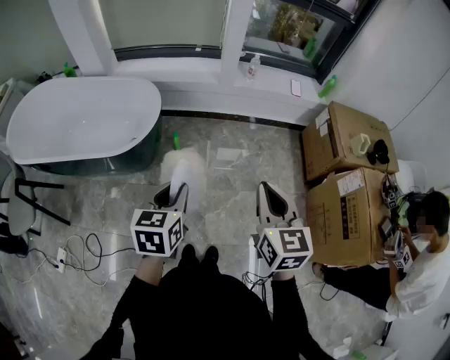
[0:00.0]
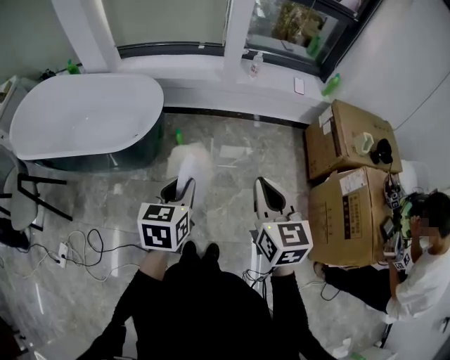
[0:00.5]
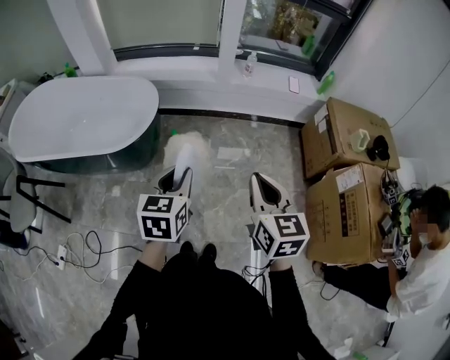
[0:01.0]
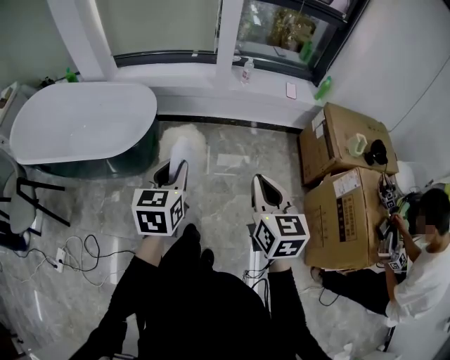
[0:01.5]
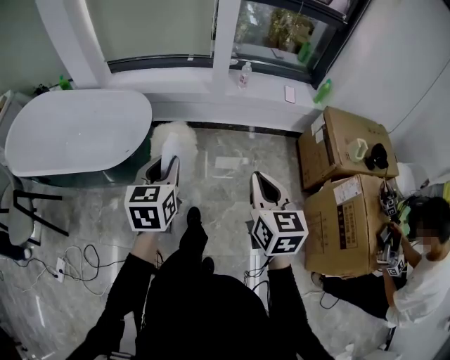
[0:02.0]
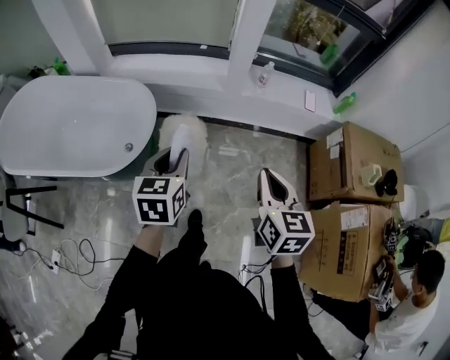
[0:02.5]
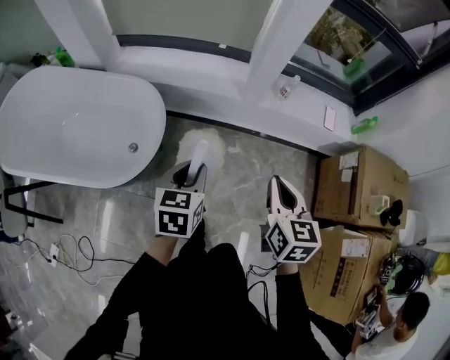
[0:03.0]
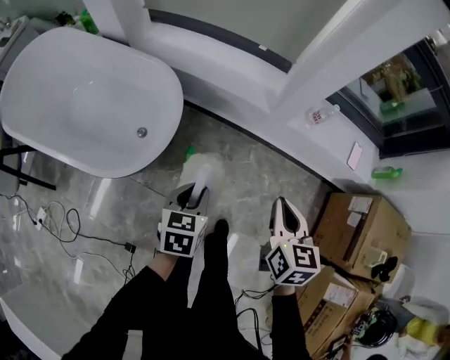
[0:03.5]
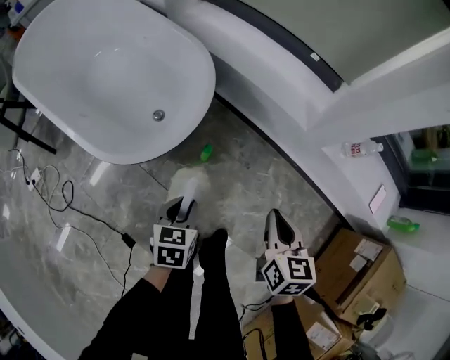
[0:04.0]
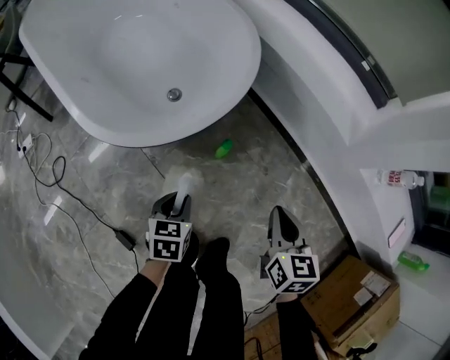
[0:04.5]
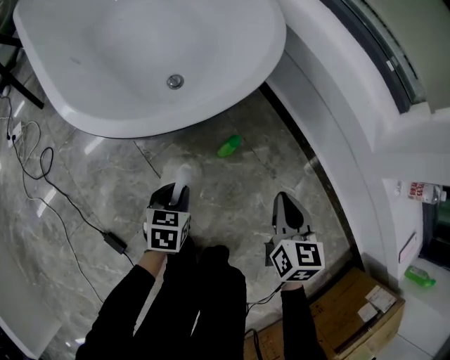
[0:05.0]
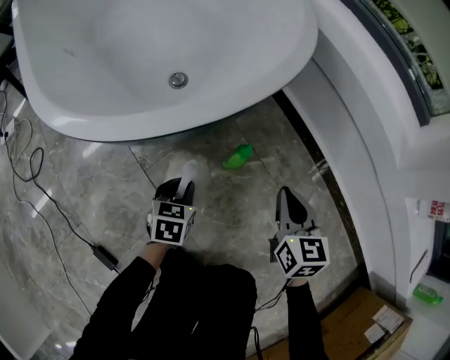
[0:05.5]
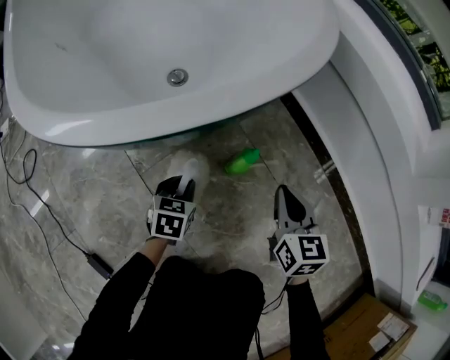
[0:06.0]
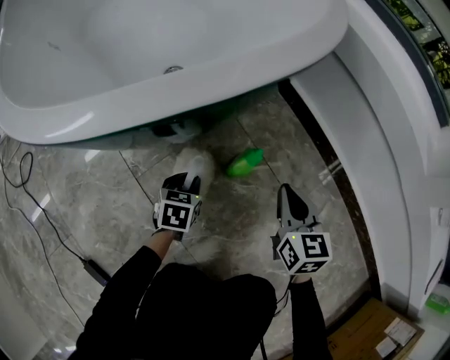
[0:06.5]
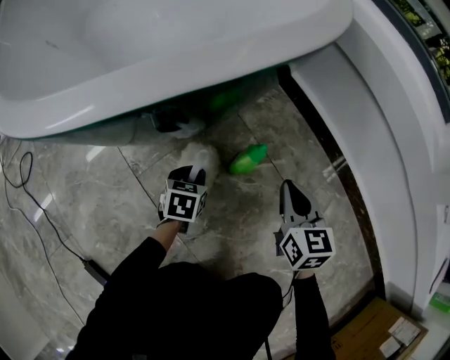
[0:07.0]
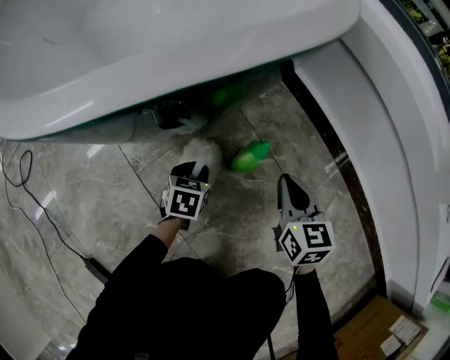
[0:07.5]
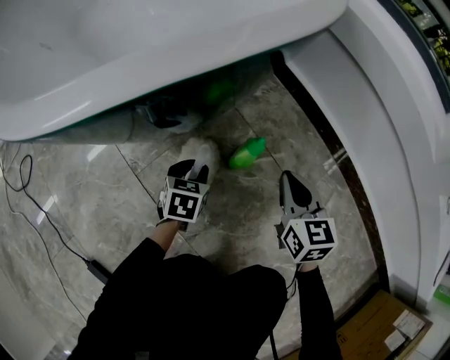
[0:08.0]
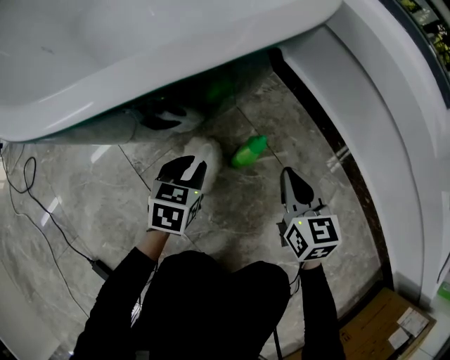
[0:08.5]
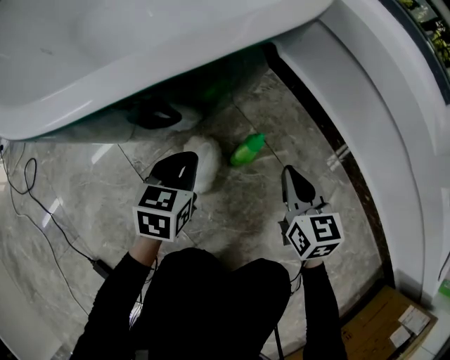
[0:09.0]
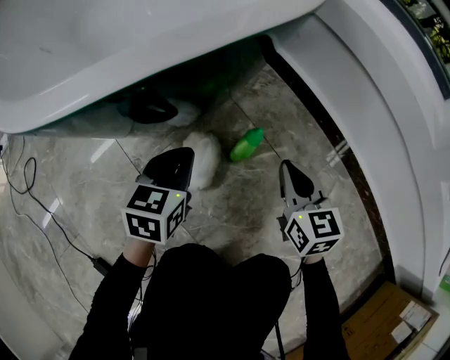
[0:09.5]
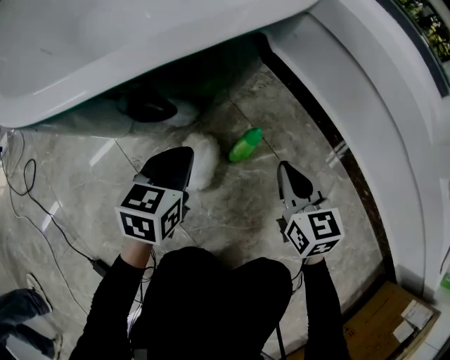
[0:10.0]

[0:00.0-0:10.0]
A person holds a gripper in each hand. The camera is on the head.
0:00.0 to 0:02.0: The grippers both shift forward by about 10 cm.
0:02.0 to 0:04.0: The left gripper travels downward by about 35 cm, and swivels some 40 degrees, while the right gripper ends up roughly 50 cm from where it was, and turns by roughly 30 degrees.
0:04.0 to 0:06.0: Both grippers move downward, approximately 40 cm. The right gripper turns by roughly 20 degrees.
0:06.0 to 0:08.0: Both grippers travel together downward, roughly 5 cm.
0:08.0 to 0:10.0: The left gripper shifts roughly 15 cm upward, and closes its fingers.

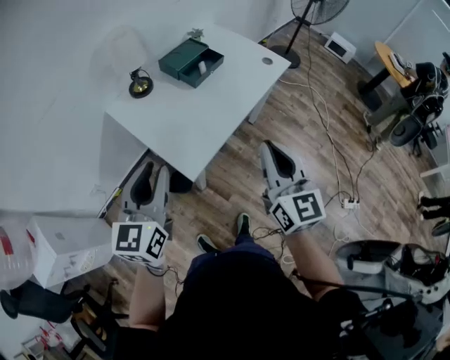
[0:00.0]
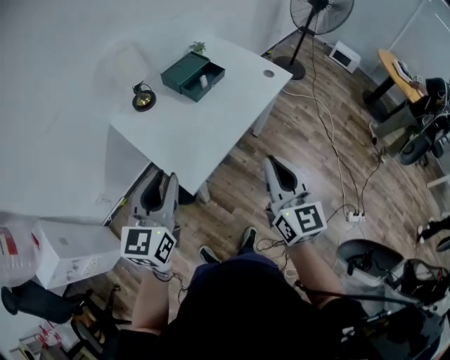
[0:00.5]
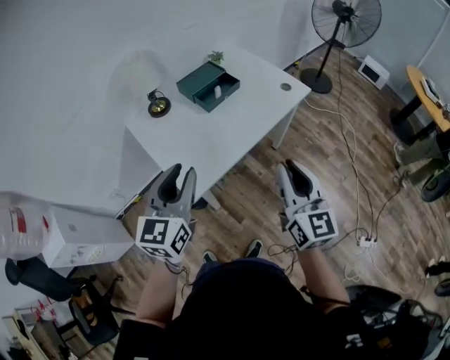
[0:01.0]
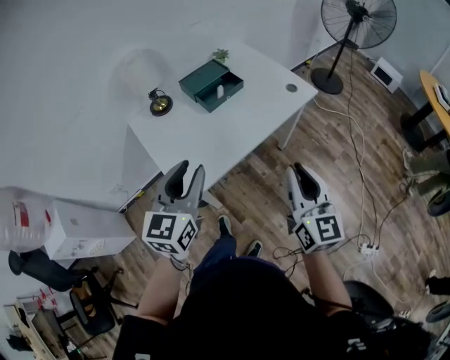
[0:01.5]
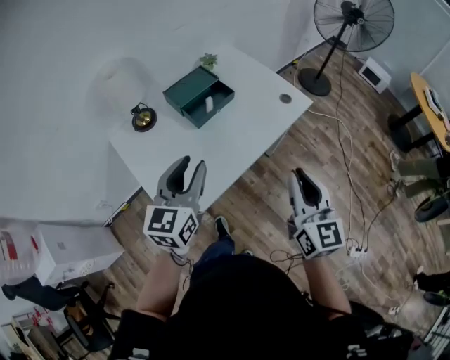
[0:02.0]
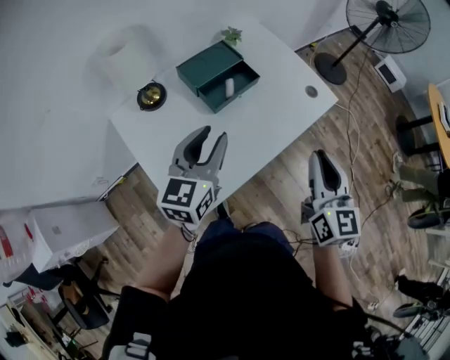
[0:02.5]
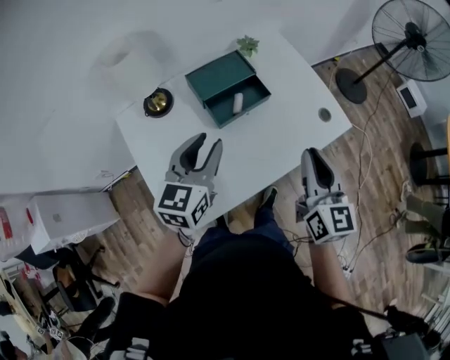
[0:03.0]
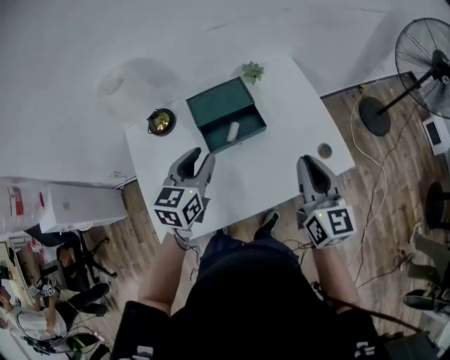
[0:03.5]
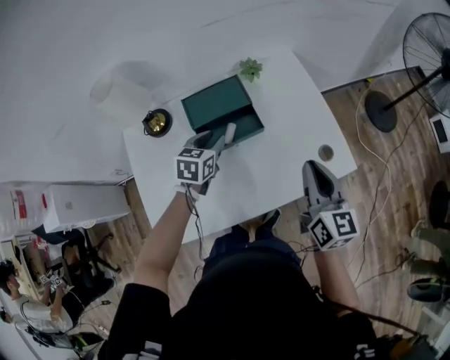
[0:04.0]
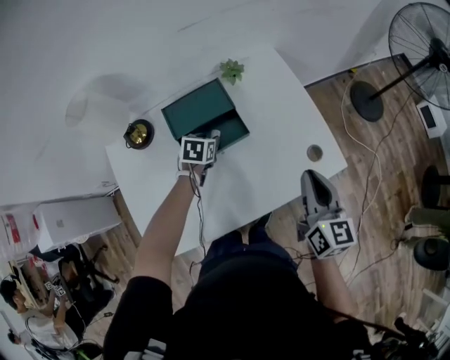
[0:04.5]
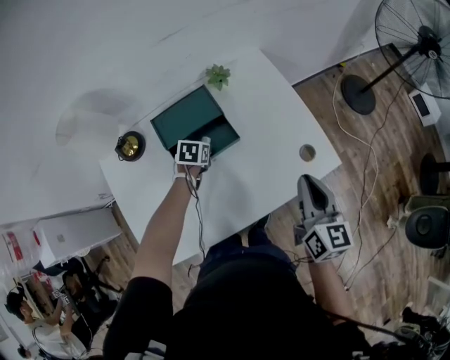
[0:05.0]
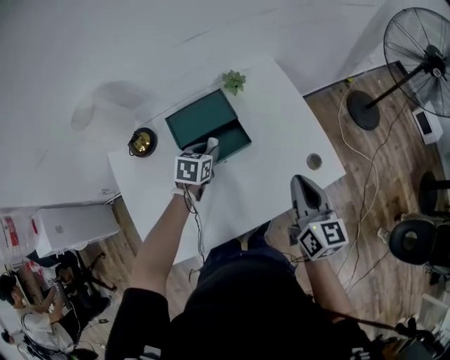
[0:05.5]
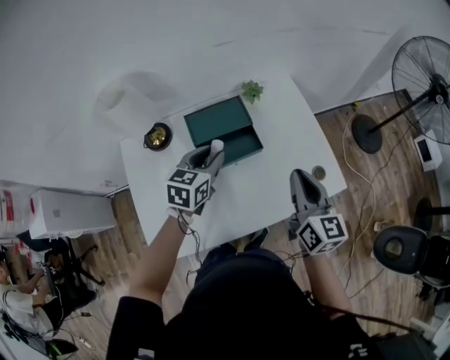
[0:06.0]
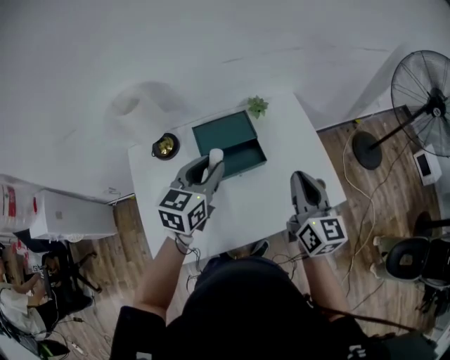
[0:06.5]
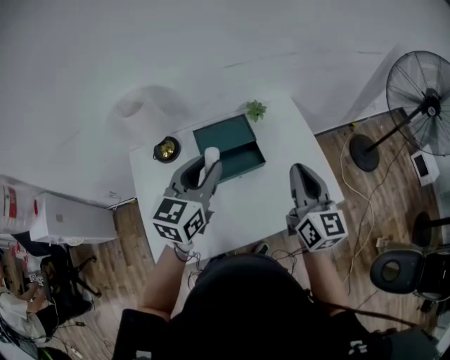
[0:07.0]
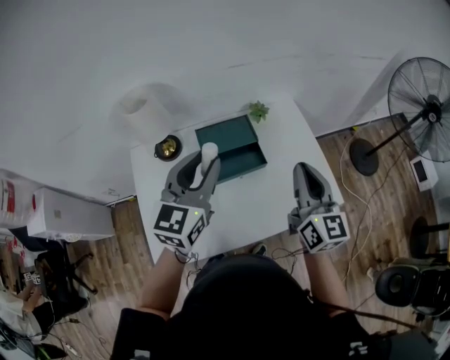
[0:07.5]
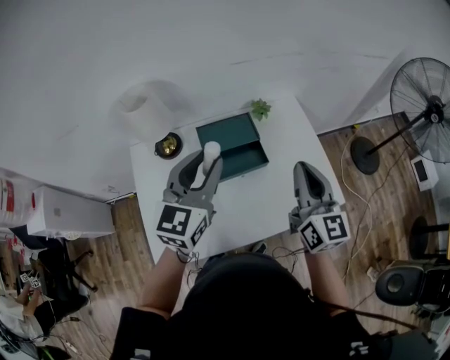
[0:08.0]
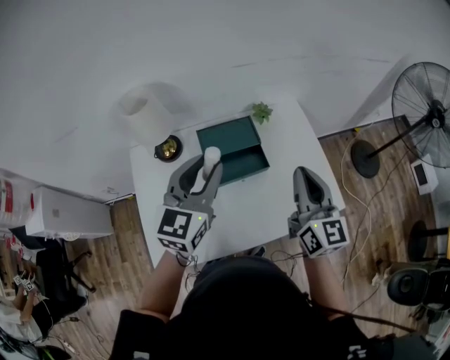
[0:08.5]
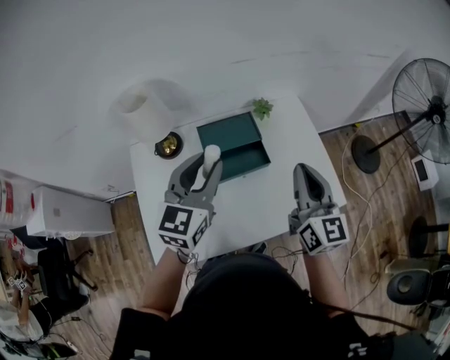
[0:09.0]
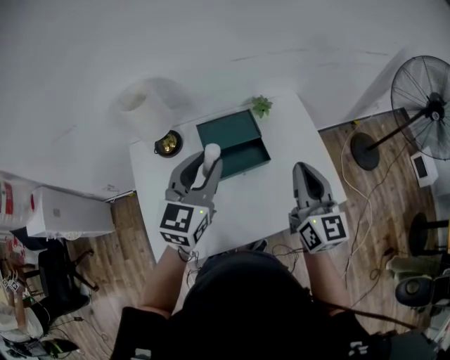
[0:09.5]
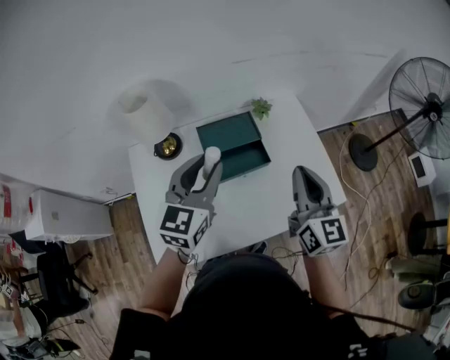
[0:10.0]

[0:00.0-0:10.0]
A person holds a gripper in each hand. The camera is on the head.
0:00.0 to 0:02.0: Both grippers move forward and to the right, some 25 cm.
0:02.0 to 0:04.0: The left gripper heads forward and downward, covering approximately 40 cm, and tilts its fingers roughly 30 degrees downward; the right gripper moves forward, about 40 cm, and rotates about 30 degrees.
0:04.0 to 0:06.0: The left gripper heads upward, covering approximately 10 cm. Meanwhile the right gripper travels to the left by about 5 cm.
0:06.0 to 0:08.0: The right gripper goes approximately 10 cm upward; the left gripper shifts about 20 cm upward, and rotates approximately 30 degrees.
0:08.0 to 0:10.0: The grippers stay close to where they were, moving slightly.

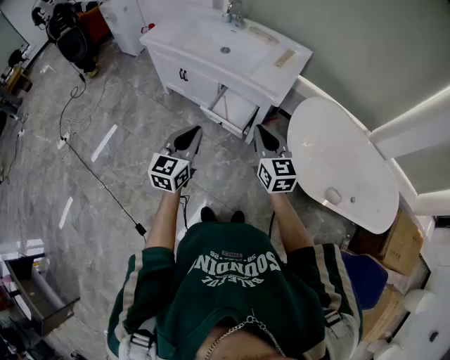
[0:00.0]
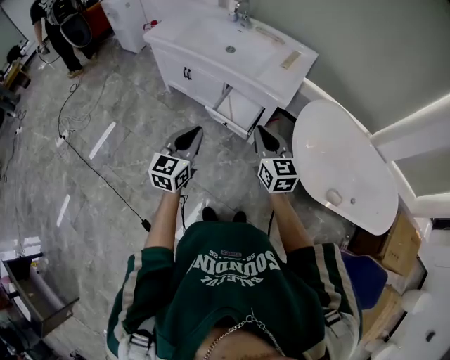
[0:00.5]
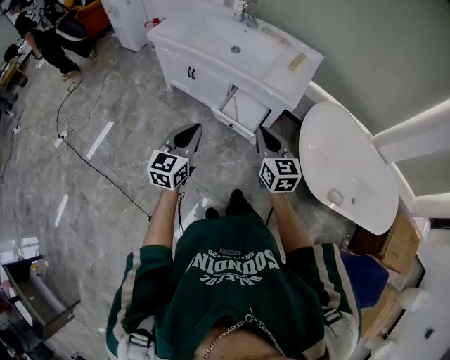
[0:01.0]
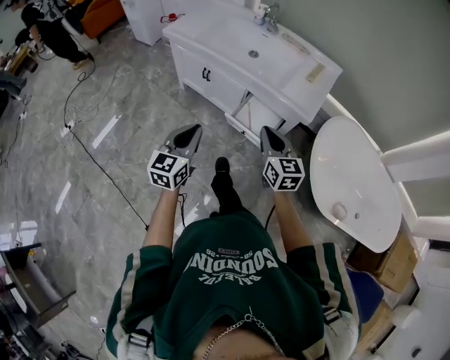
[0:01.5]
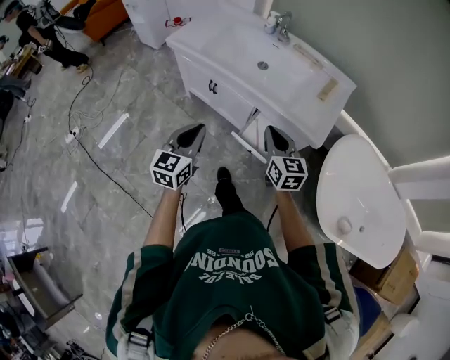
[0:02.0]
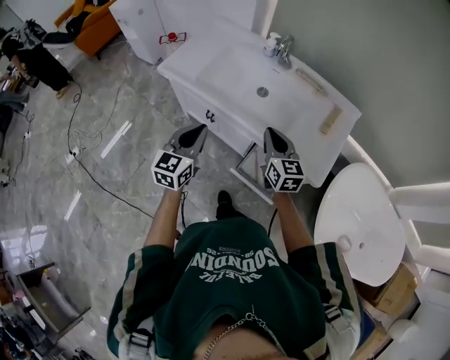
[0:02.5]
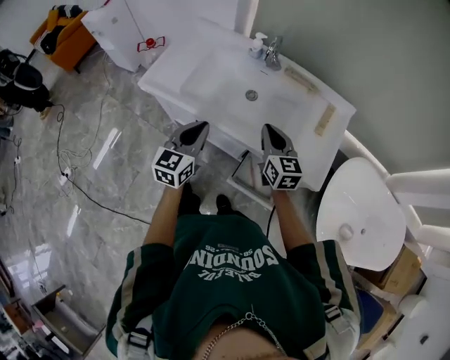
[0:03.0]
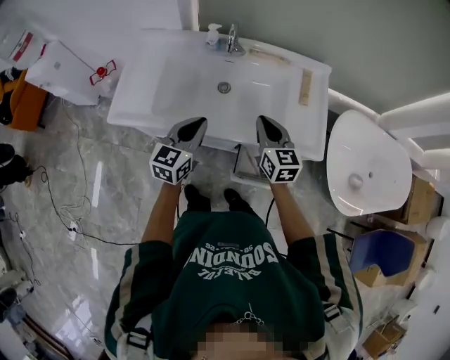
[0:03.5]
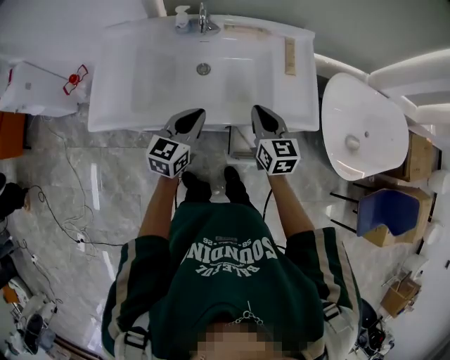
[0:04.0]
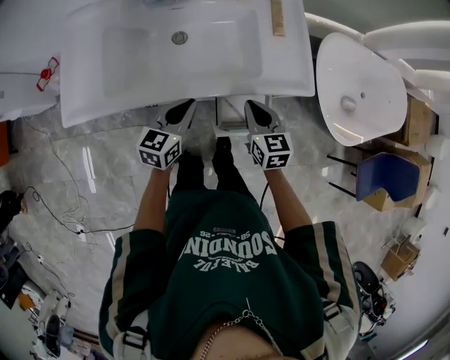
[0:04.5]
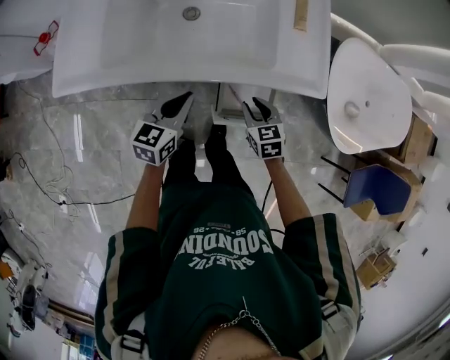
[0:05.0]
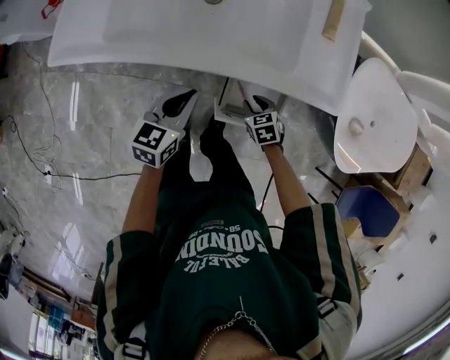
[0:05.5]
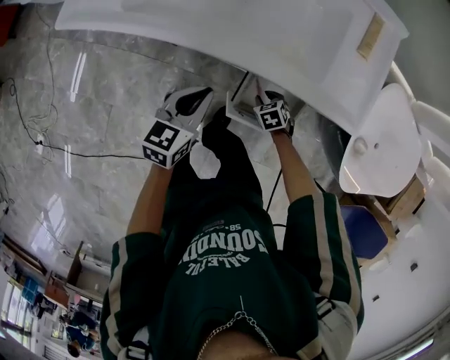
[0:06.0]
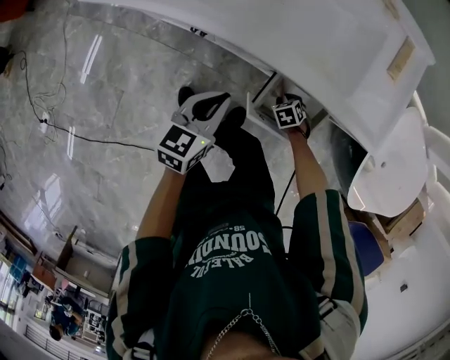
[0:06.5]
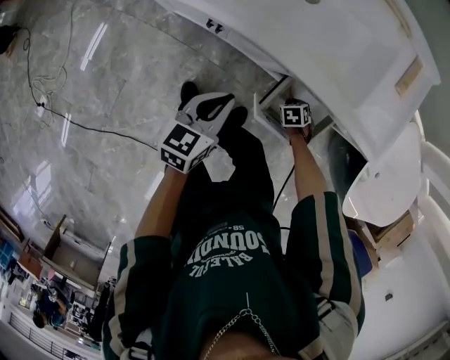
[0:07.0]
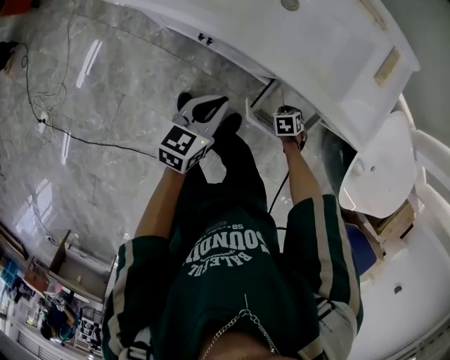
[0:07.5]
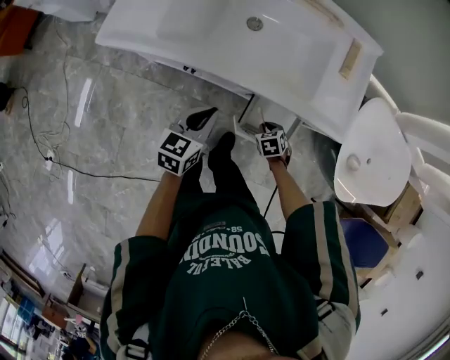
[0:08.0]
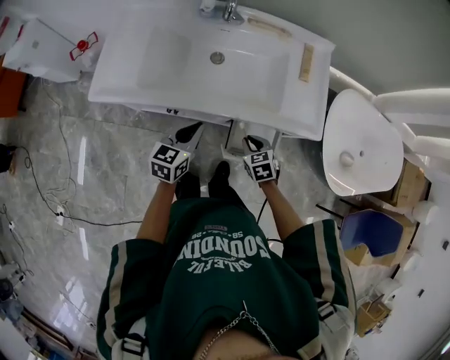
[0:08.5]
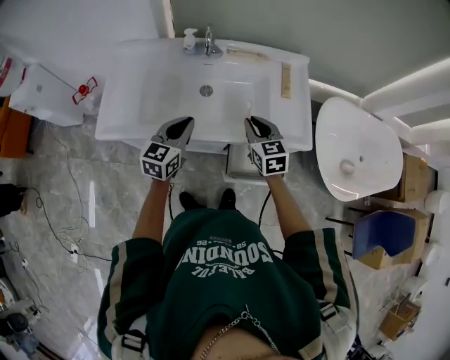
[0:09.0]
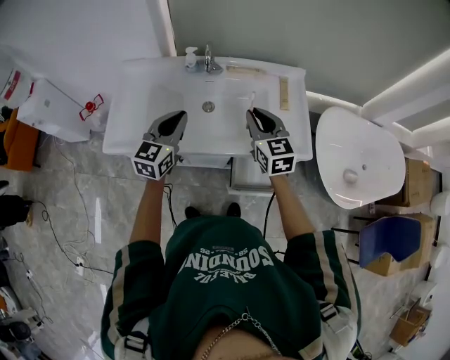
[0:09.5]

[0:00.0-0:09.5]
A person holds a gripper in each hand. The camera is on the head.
0:00.0 to 0:02.0: Both grippers travel together forward and to the left, some 25 cm.
0:02.0 to 0:04.0: The left gripper changes place by approximately 35 cm, and rotates some 40 degrees, while the right gripper ends up about 25 cm from where it was, and rotates about 30 degrees.
0:04.0 to 0:05.5: The left gripper shifts approximately 15 cm downward and backward, while the right gripper moves downward, some 35 cm, tilts its fingers approximately 40 degrees downward, and opens its fingers.
0:05.5 to 0:07.5: The right gripper goes about 10 cm downward, and swivels about 20 degrees; the left gripper shifts by some 10 cm.
0:07.5 to 0:09.5: The left gripper is displaced upward by about 30 cm, and swivels approximately 30 degrees; the right gripper travels upward by approximately 50 cm, and points its fingers about 60 degrees further upward.
